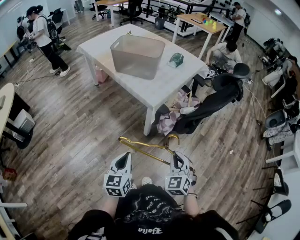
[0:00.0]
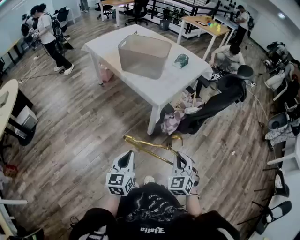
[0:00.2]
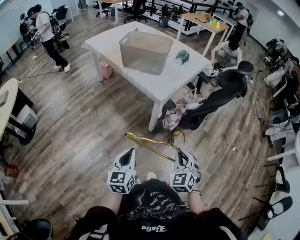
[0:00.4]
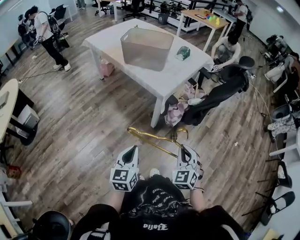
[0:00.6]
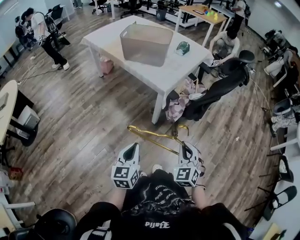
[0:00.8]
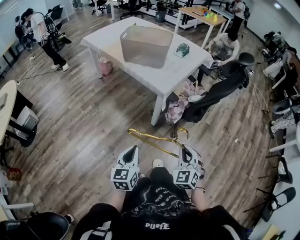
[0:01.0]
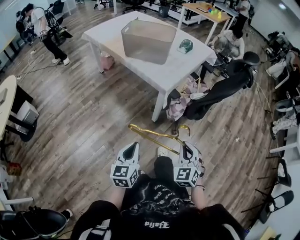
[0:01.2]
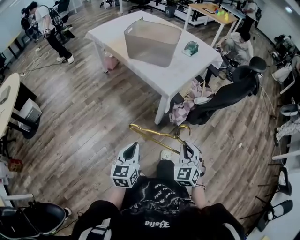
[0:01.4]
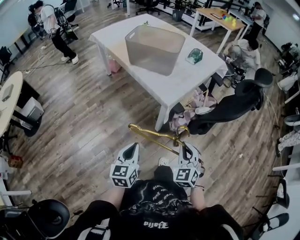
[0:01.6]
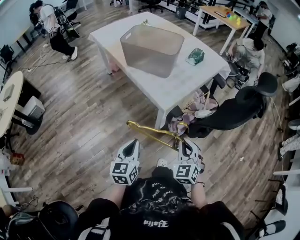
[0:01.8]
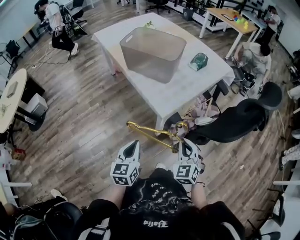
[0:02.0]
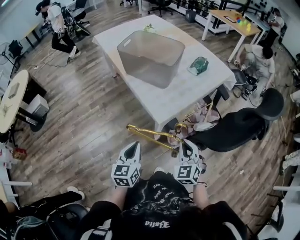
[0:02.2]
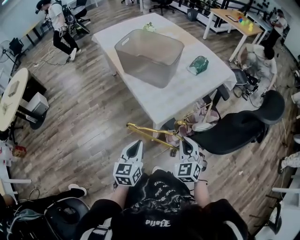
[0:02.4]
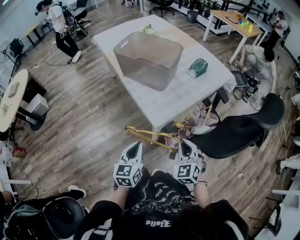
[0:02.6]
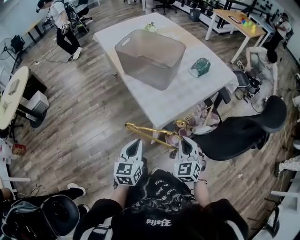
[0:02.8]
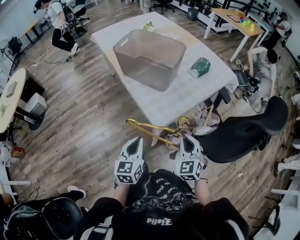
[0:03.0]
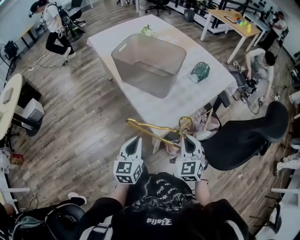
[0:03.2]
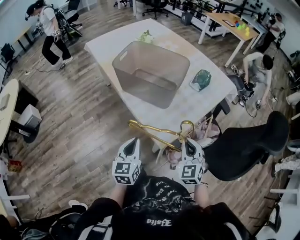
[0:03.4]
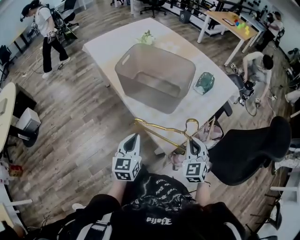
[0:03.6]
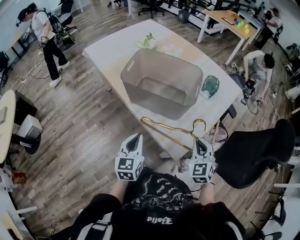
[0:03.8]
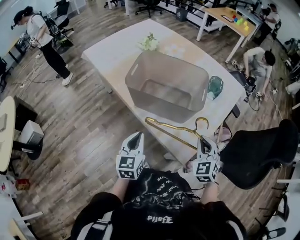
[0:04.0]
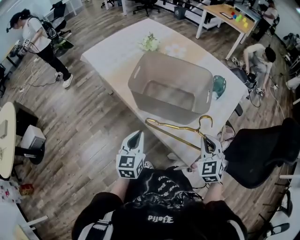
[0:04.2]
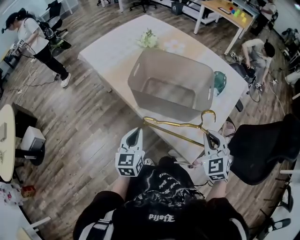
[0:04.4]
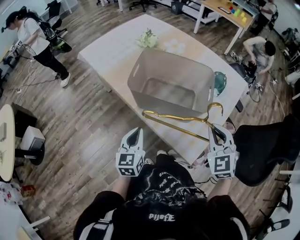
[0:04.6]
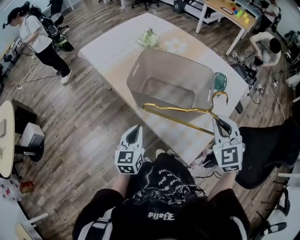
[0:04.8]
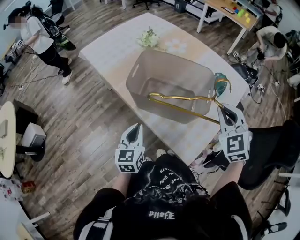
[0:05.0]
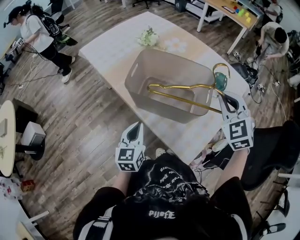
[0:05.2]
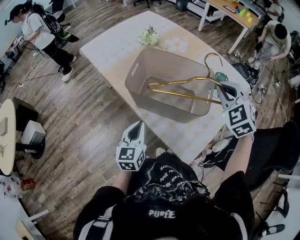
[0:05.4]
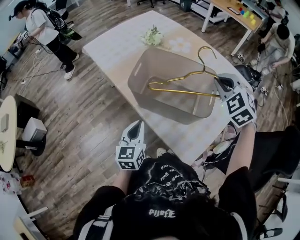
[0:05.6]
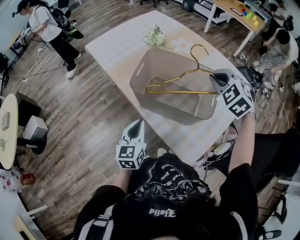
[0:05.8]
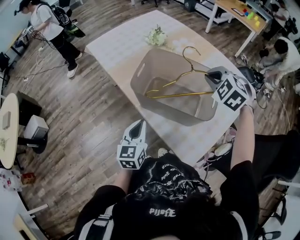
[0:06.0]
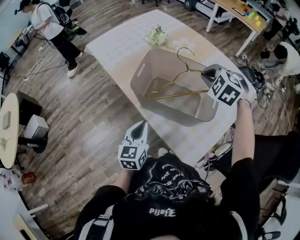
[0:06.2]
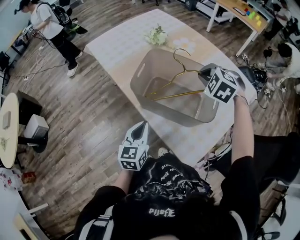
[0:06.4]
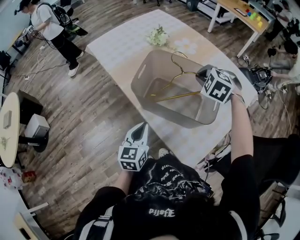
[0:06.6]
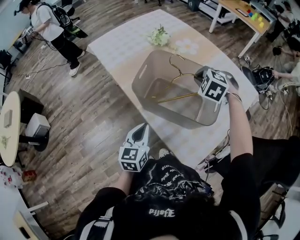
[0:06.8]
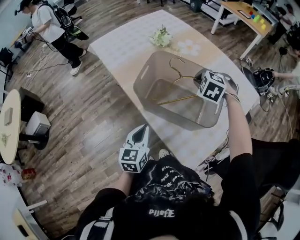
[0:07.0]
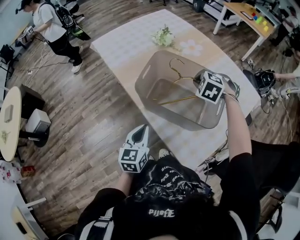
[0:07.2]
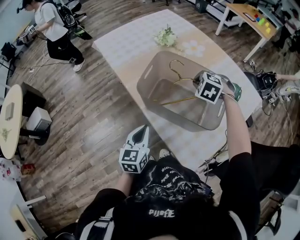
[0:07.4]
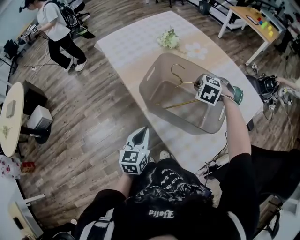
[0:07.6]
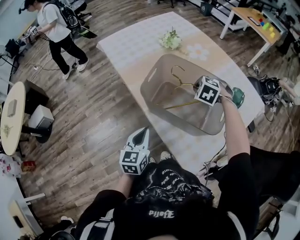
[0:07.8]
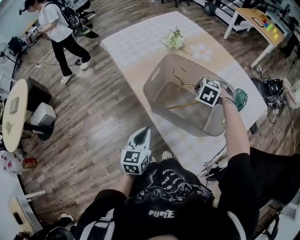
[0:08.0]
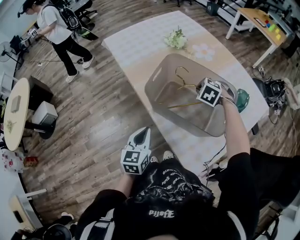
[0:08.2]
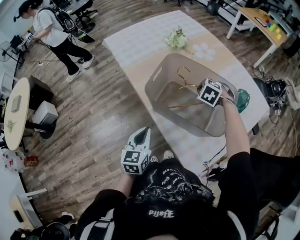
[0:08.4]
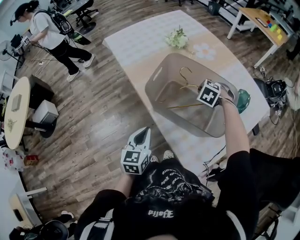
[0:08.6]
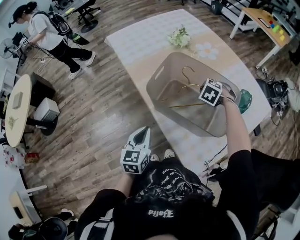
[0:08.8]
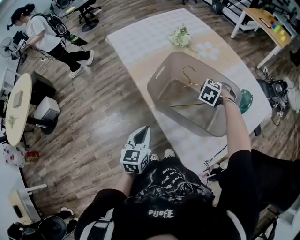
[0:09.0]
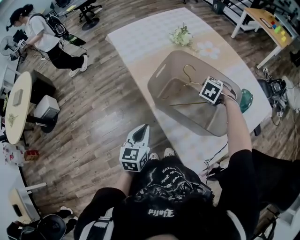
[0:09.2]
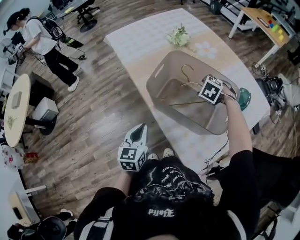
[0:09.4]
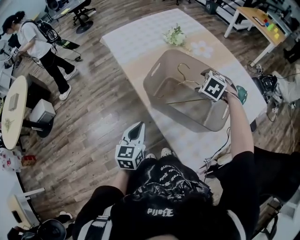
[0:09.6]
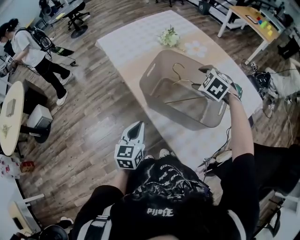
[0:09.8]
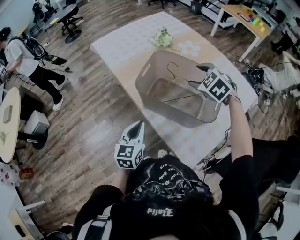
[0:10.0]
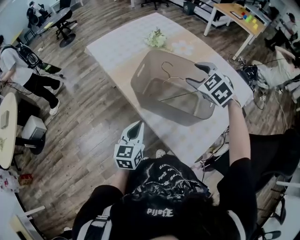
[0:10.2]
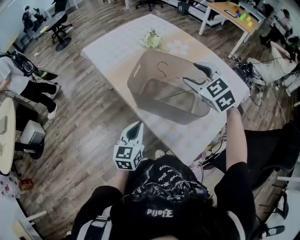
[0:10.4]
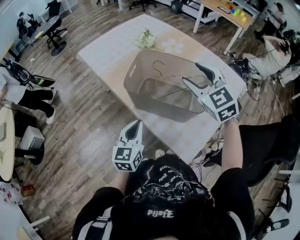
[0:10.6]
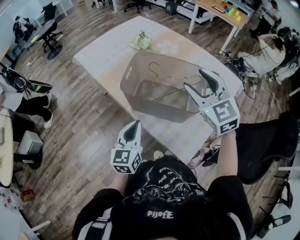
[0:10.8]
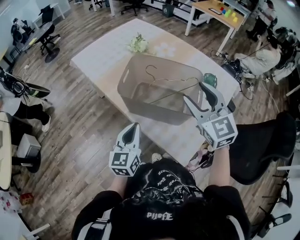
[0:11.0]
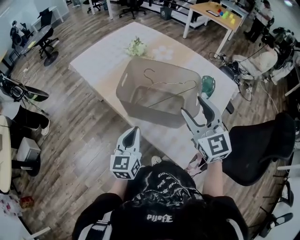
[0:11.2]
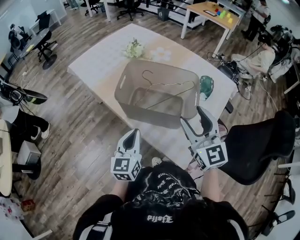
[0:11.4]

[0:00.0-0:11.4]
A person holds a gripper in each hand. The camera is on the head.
0:00.0 to 0:01.4: The left gripper changes place by approximately 5 cm, while the right gripper goes backward and returns, about 10 cm each way.
0:01.4 to 0:02.8: Both grippers travel together forward and to the right, approximately 35 cm.
0:02.8 to 0:04.2: Both grippers move forward and to the left, approximately 40 cm.
0:04.2 to 0:05.6: The right gripper goes roughly 25 cm forward and upward, and changes its angle by some 20 degrees; the left gripper shifts roughly 5 cm forward.
0:05.6 to 0:07.2: The right gripper travels downward, forward and to the left by about 20 cm, and changes its angle by some 30 degrees.
0:07.2 to 0:08.6: The right gripper heads downward, covering about 10 cm.
0:08.6 to 0:10.0: The right gripper travels upward by about 15 cm, changes its angle by about 20 degrees, and opens its fingers.
0:10.0 to 0:11.4: The right gripper shifts about 20 cm backward, and angles its fingers upward, by approximately 50 degrees, while the left gripper moves about 5 cm.

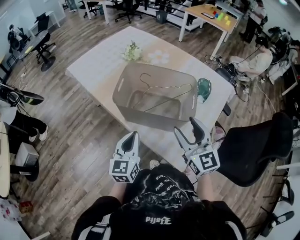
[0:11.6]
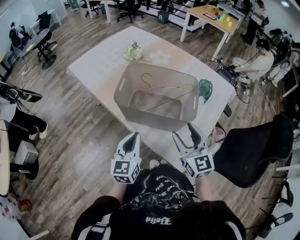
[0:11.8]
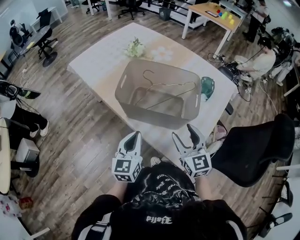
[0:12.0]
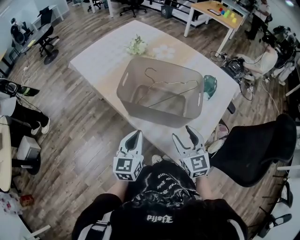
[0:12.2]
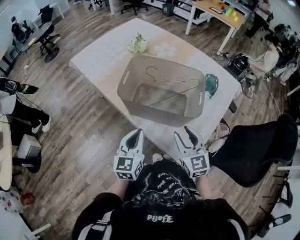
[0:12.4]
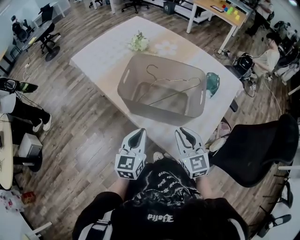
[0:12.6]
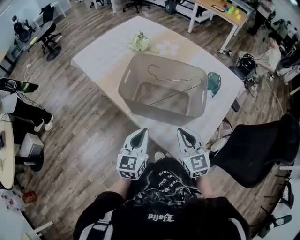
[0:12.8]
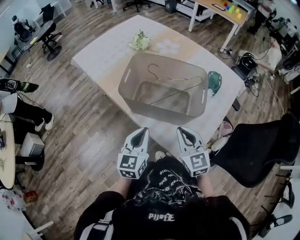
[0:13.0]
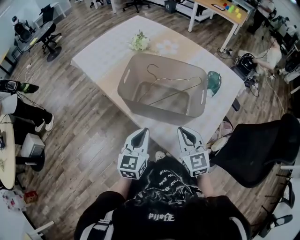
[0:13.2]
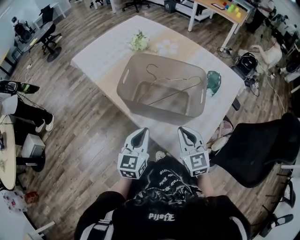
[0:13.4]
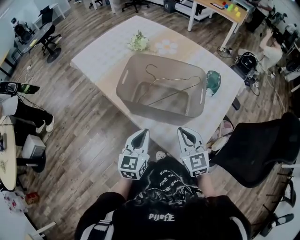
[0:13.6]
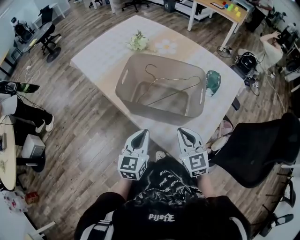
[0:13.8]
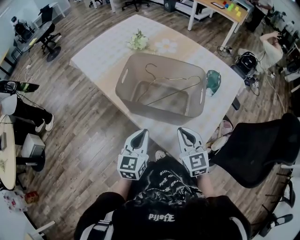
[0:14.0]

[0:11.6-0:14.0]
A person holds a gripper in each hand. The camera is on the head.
0:11.6 to 0:12.8: The right gripper is displaced downward by some 10 cm, and closes up.
0:12.8 to 0:14.0: The grippers stay close to where they were, moving slightly.

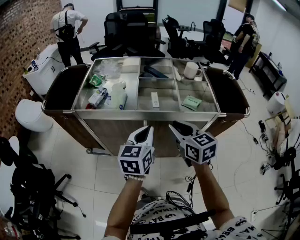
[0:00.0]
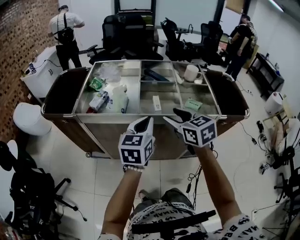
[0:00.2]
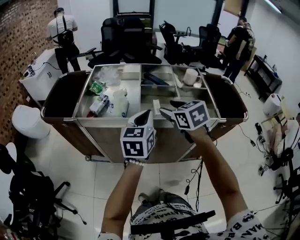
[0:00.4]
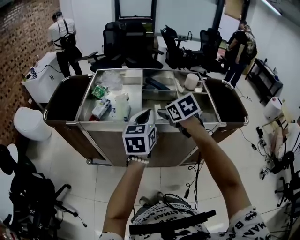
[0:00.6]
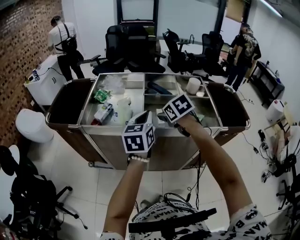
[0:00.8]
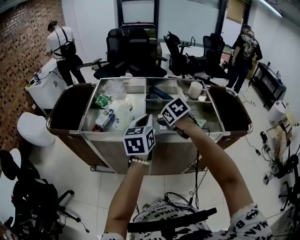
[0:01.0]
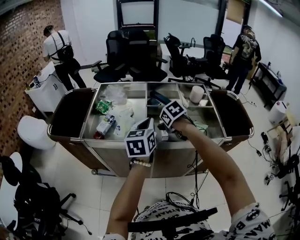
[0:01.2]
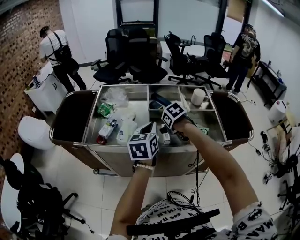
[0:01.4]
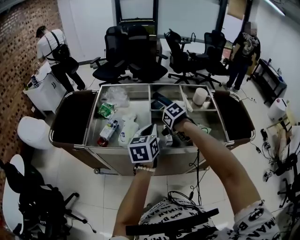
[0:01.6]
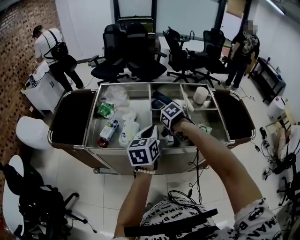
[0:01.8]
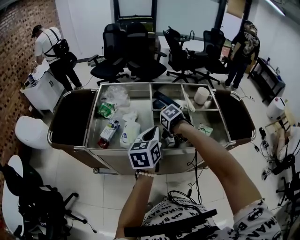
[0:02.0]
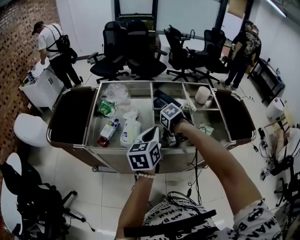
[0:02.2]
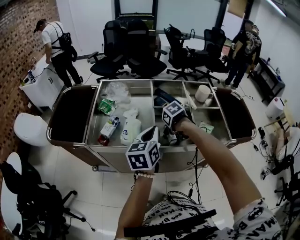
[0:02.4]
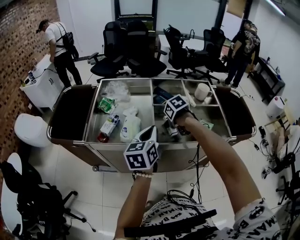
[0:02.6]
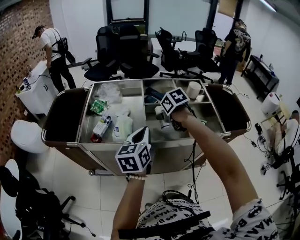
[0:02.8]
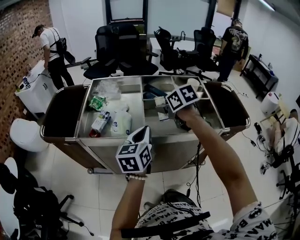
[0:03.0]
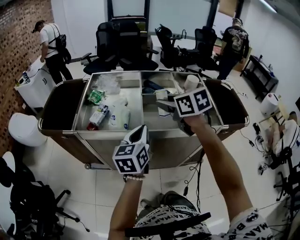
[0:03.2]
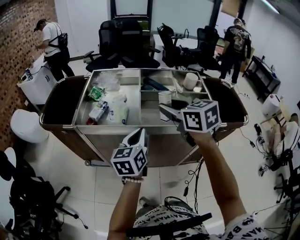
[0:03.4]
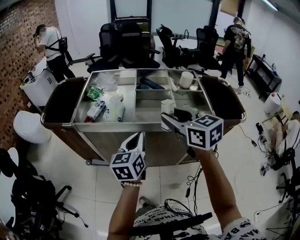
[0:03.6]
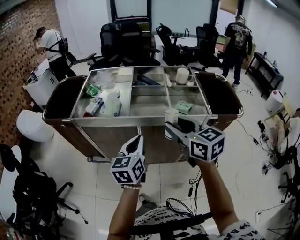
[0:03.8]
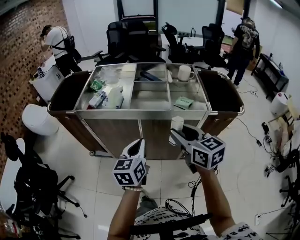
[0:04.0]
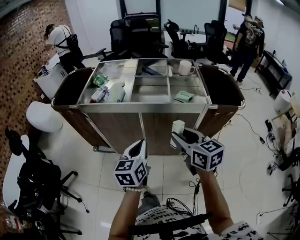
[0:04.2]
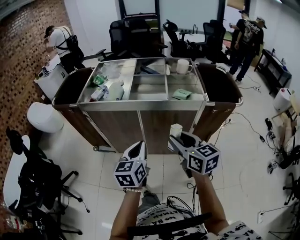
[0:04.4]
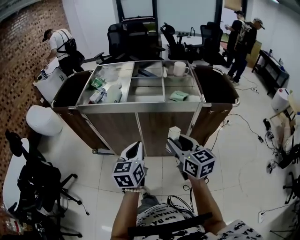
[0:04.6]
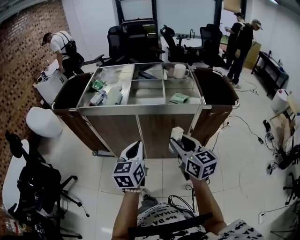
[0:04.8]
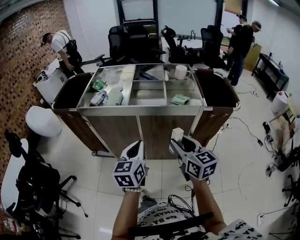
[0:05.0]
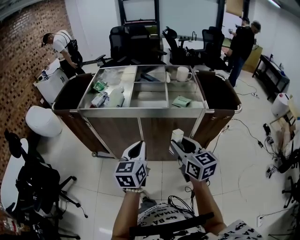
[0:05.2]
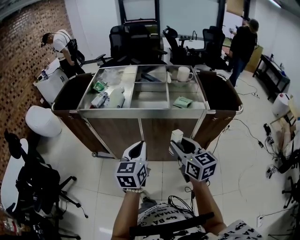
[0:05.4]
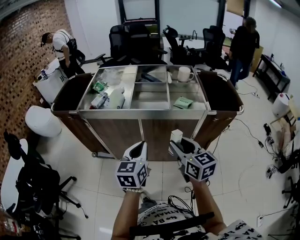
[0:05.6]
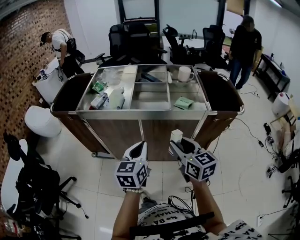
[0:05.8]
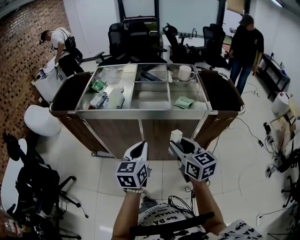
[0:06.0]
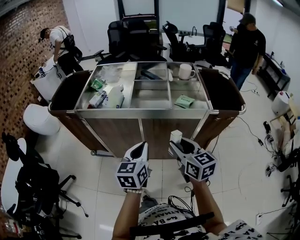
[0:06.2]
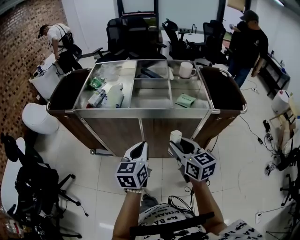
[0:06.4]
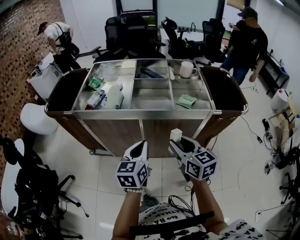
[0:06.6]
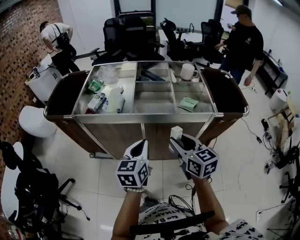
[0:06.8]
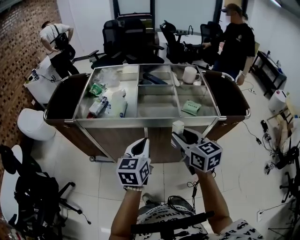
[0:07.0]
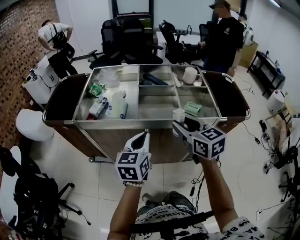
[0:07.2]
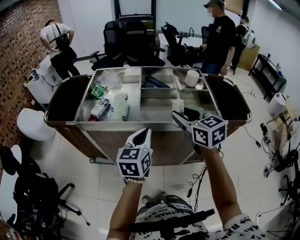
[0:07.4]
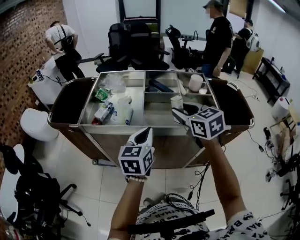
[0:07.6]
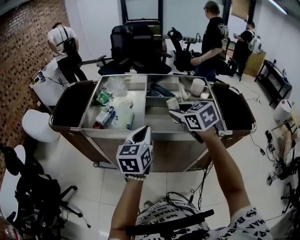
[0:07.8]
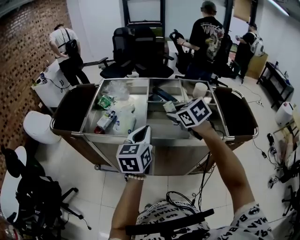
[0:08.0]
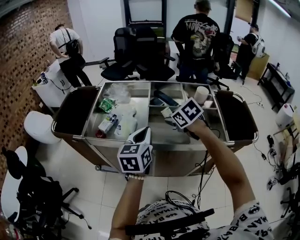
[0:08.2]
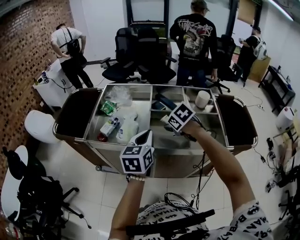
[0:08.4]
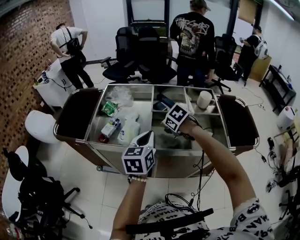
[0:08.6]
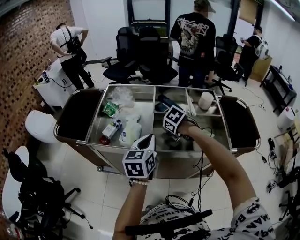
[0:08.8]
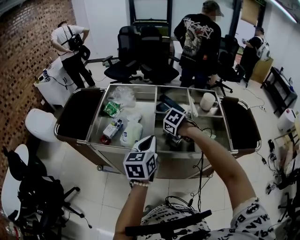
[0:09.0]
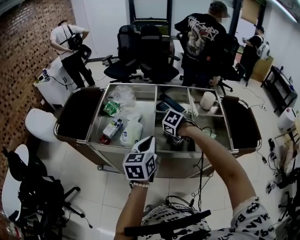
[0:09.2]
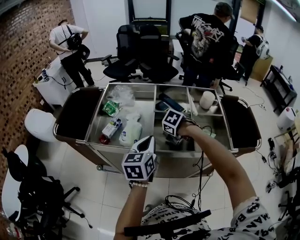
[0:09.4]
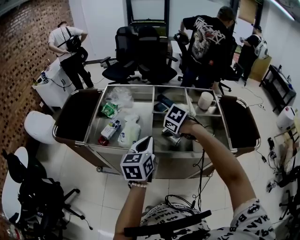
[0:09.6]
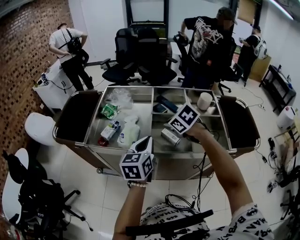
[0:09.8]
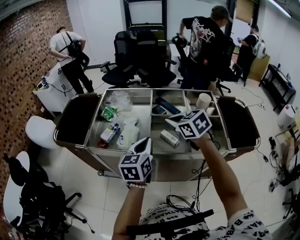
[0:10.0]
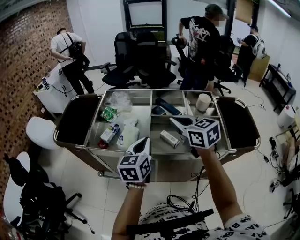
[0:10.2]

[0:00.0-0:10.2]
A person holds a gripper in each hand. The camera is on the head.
0:00.0 to 0:01.4: The right gripper shifts approximately 20 cm forward and downward, points its fingers approximately 50 degrees further downward, and opens its fingers. Meanwhile the left gripper moves forward, roughly 15 cm.
0:01.4 to 0:03.0: The left gripper ends up about 5 cm from where it was; the right gripper is displaced upward by roughly 10 cm, changes its angle by approximately 30 degrees, and closes.
0:03.0 to 0:04.4: The grippers both shift backward by some 30 cm. The right gripper tips its fingers upward by approximately 30 degrees.
0:04.4 to 0:05.8: The grippers move only a little.
0:05.8 to 0:07.2: The right gripper moves forward and upward, approximately 15 cm. The left gripper heads forward, covering roughly 10 cm.
0:07.2 to 0:08.8: The left gripper shifts by about 10 cm. Meanwhile the right gripper changes place by approximately 25 cm, and angles its fingers downward, by roughly 60 degrees.
0:08.8 to 0:10.2: The right gripper shifts about 20 cm upward, tilts its fingers approximately 60 degrees upward, and closes its fingers.
